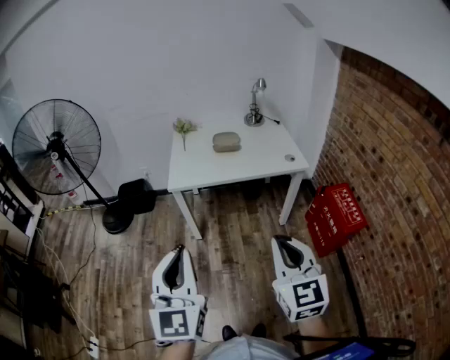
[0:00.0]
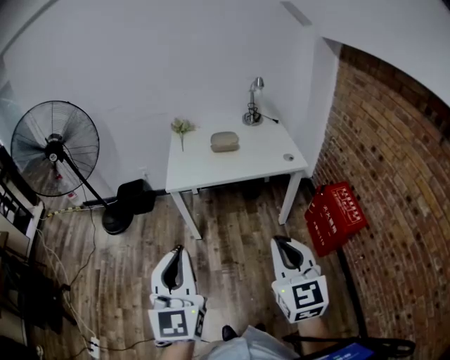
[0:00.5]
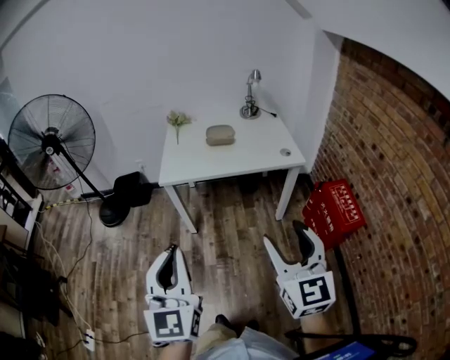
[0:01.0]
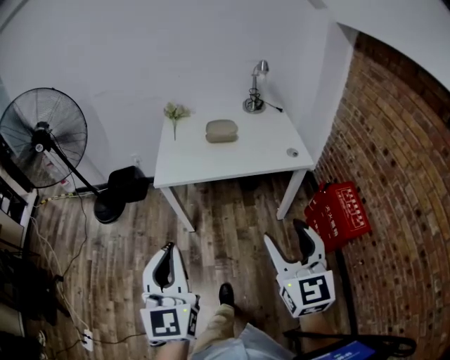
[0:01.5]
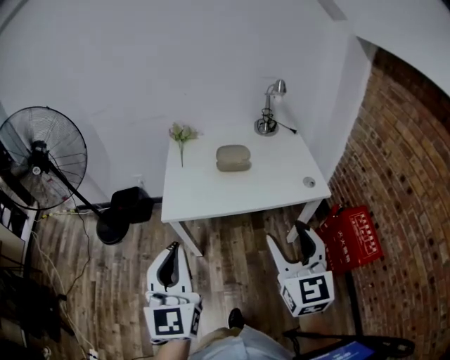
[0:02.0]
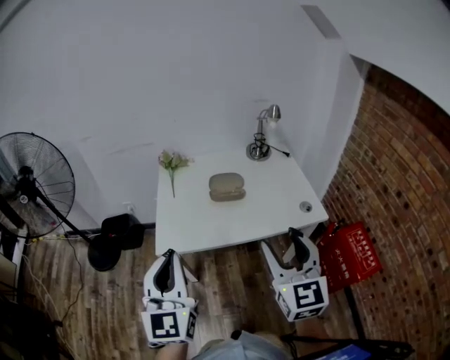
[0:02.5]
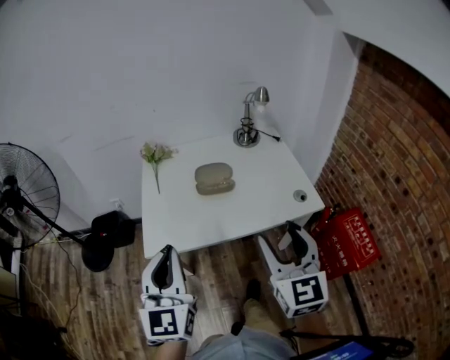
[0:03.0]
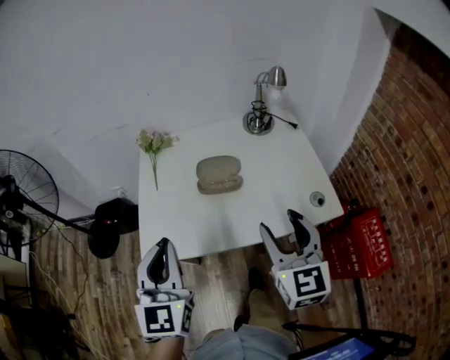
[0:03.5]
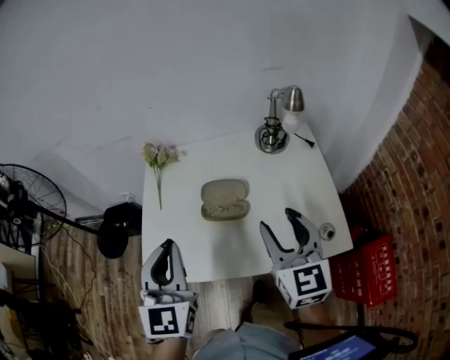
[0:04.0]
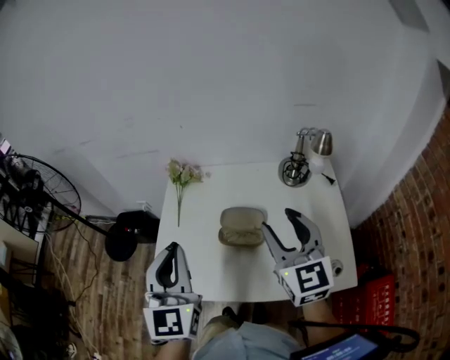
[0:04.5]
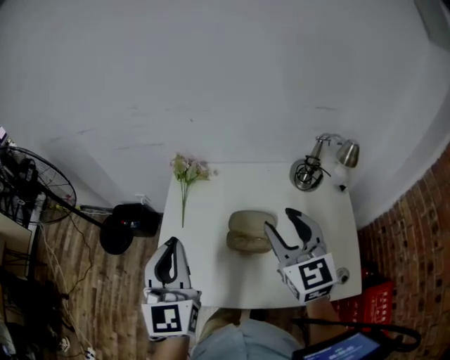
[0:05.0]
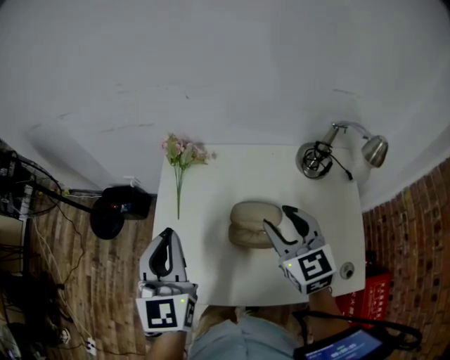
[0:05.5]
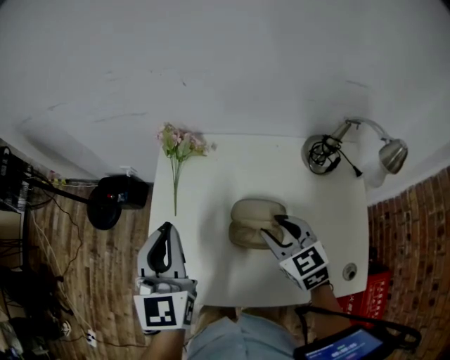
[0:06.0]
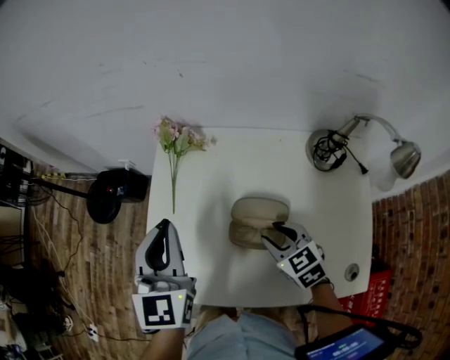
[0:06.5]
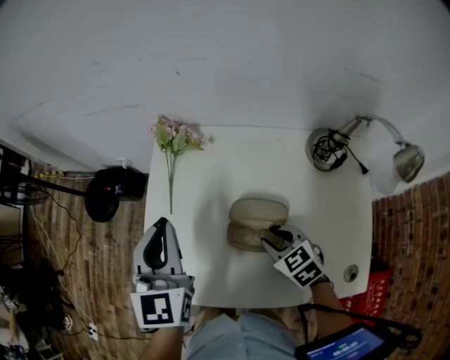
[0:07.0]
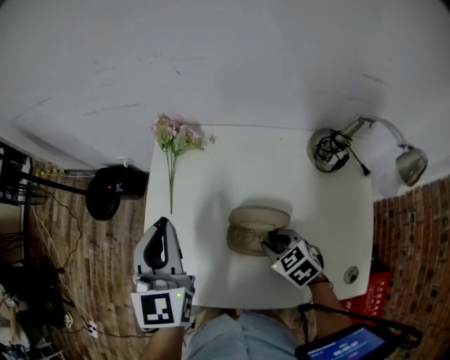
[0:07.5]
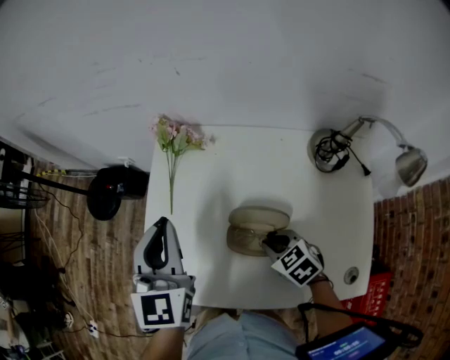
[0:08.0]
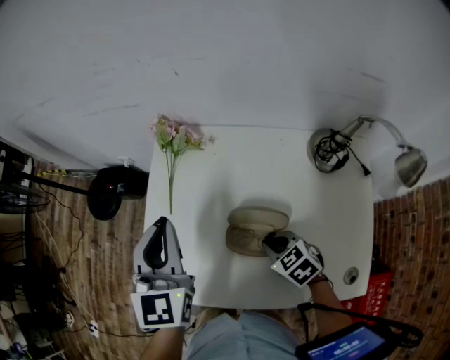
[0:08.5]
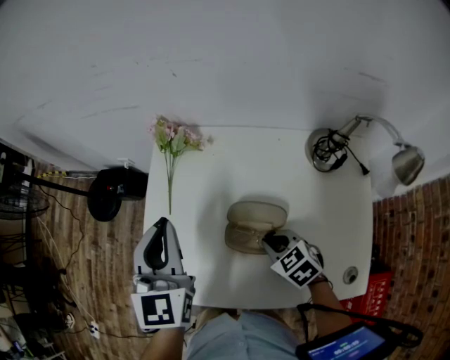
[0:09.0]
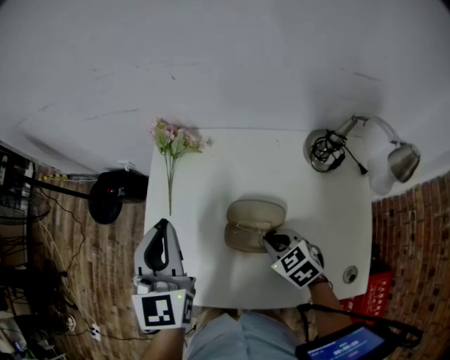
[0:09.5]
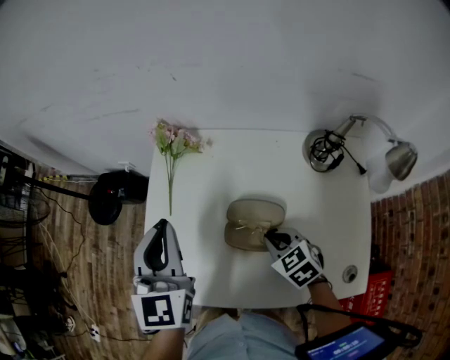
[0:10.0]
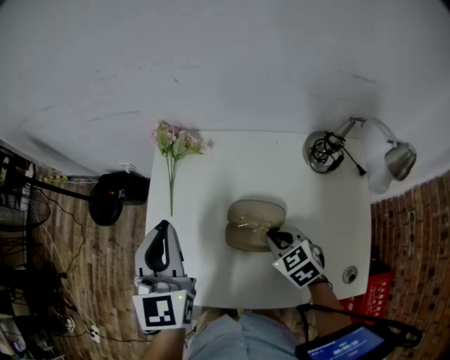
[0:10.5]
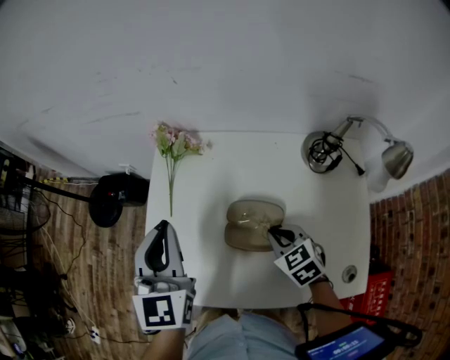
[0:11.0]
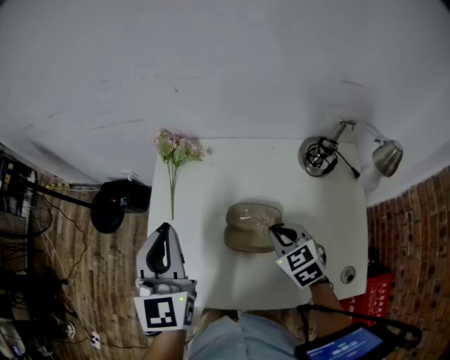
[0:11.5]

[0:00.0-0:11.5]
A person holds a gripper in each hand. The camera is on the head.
0:00.0 to 0:02.0: The two grippers go some 25 cm forward. The right gripper opens.
0:02.0 to 0:04.0: Both grippers move forward, roughly 35 cm.
0:04.0 to 0:06.0: The right gripper heads forward, downward and to the left, covering roughly 25 cm, and swivels roughly 40 degrees. The left gripper moves forward and to the left, roughly 20 cm.
0:06.0 to 0:07.5: The right gripper is displaced downward by roughly 10 cm, and changes its angle by roughly 30 degrees.
0:07.5 to 0:09.5: The grippers move only a little.
0:09.5 to 0:11.5: The right gripper moves about 5 cm.

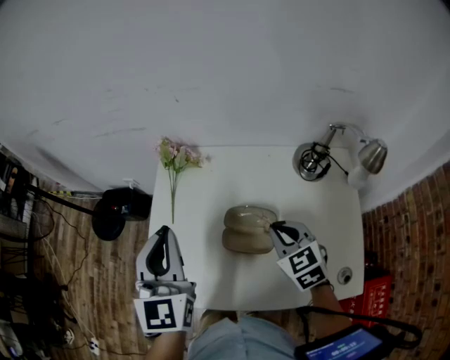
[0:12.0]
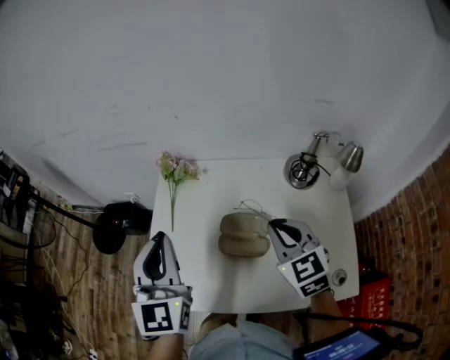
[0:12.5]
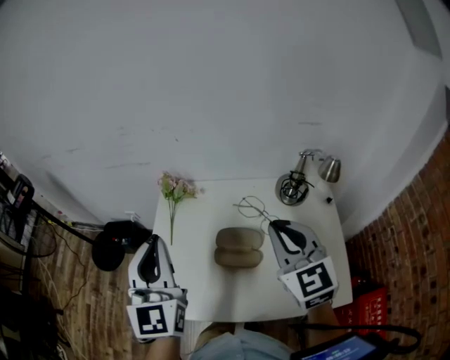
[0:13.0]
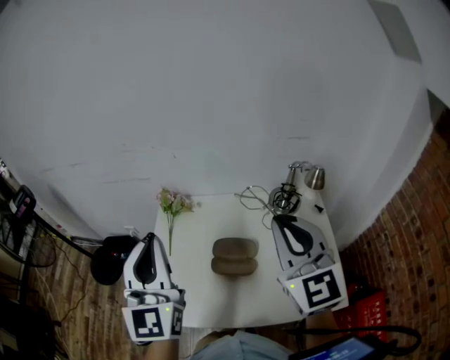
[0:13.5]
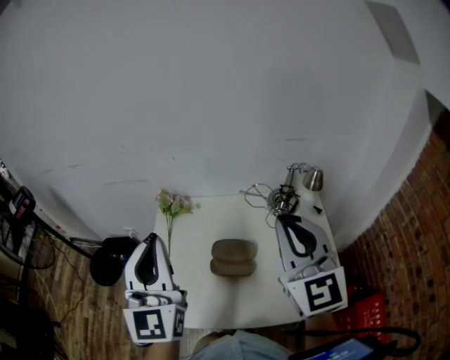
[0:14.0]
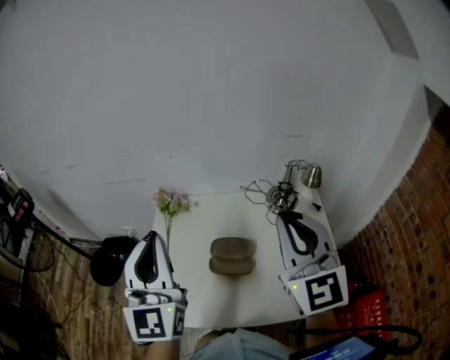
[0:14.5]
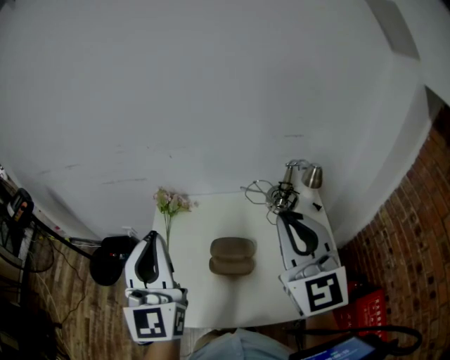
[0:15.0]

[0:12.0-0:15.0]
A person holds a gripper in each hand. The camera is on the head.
0:12.0 to 0:13.5: The right gripper heads upward, covering some 30 cm, and points its fingers about 40 degrees further upward, while the left gripper heads upward, covering about 15 cm.
0:13.5 to 0:15.0: The grippers stay close to where they were, moving slightly.

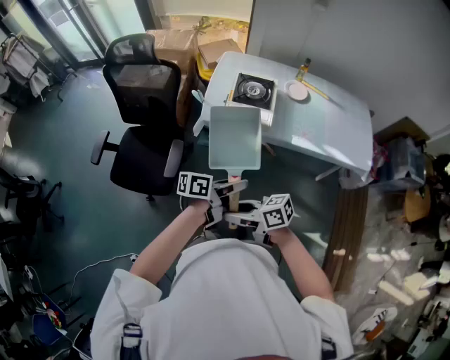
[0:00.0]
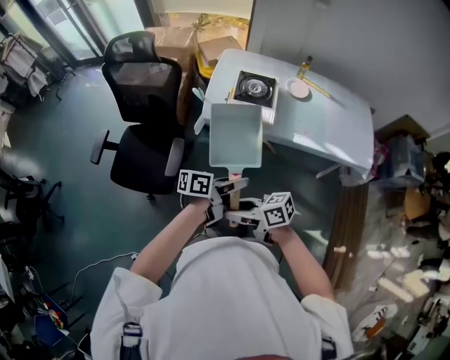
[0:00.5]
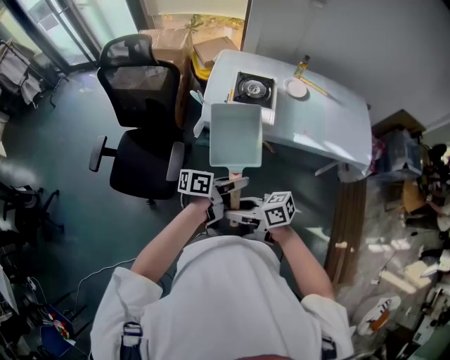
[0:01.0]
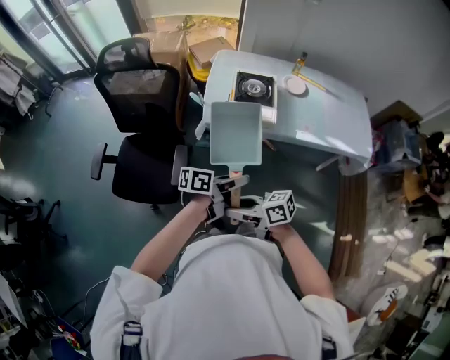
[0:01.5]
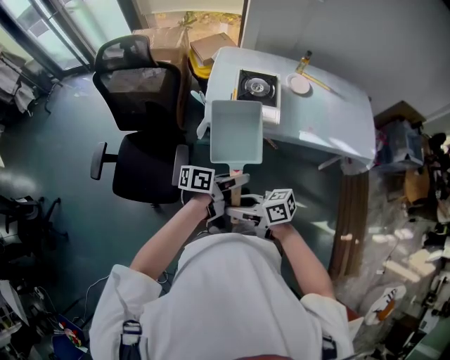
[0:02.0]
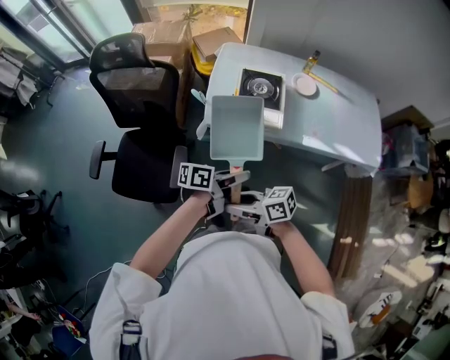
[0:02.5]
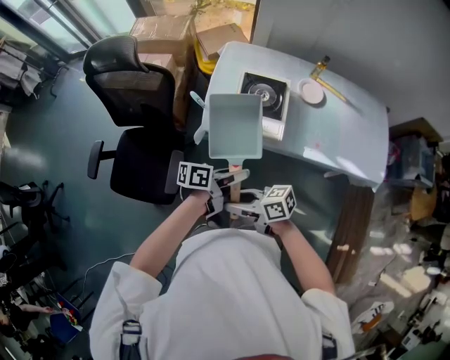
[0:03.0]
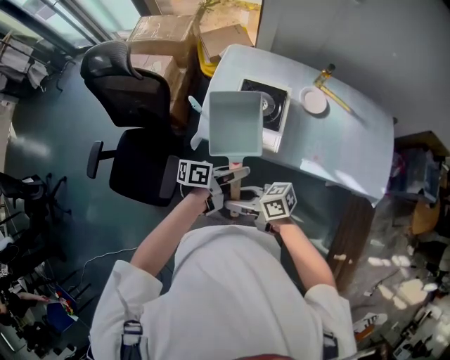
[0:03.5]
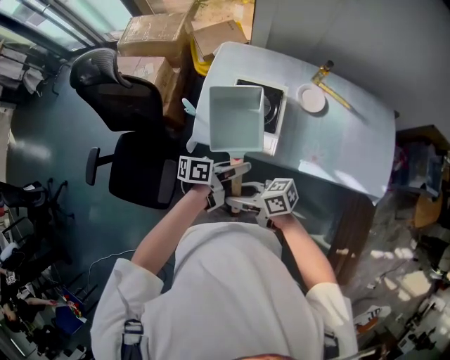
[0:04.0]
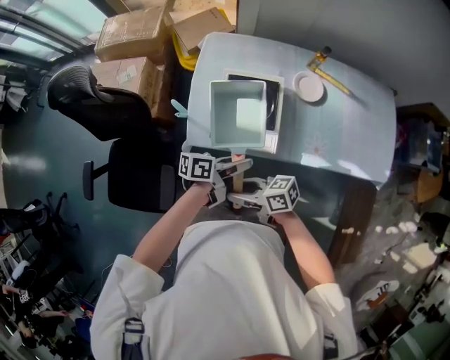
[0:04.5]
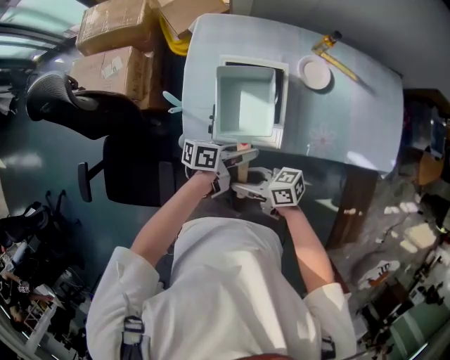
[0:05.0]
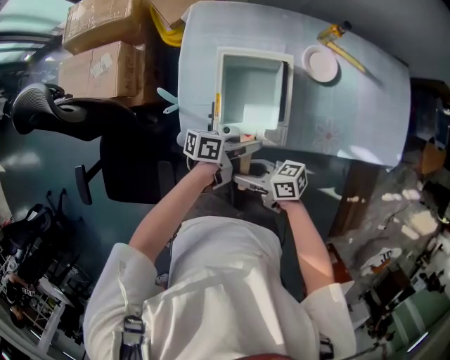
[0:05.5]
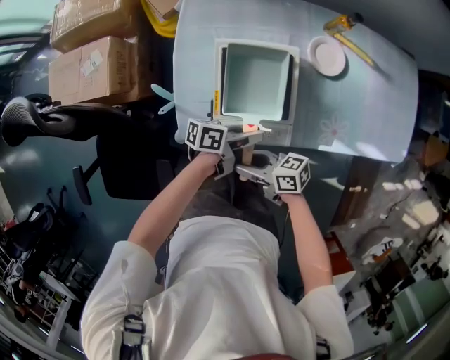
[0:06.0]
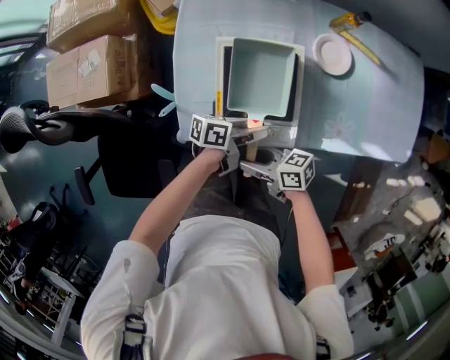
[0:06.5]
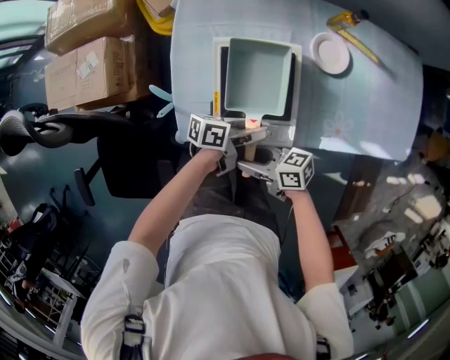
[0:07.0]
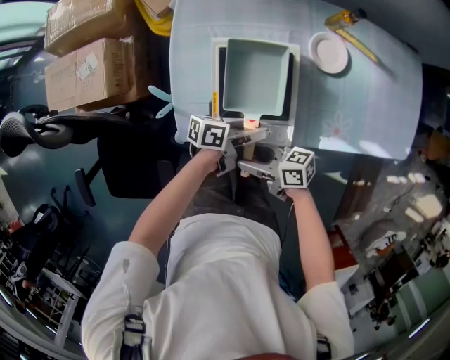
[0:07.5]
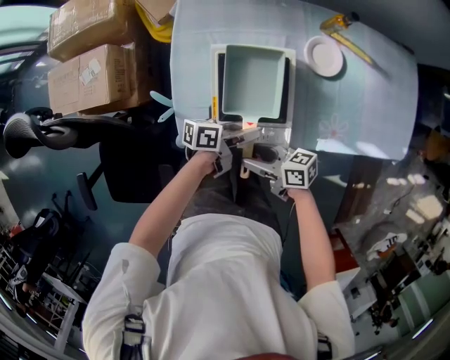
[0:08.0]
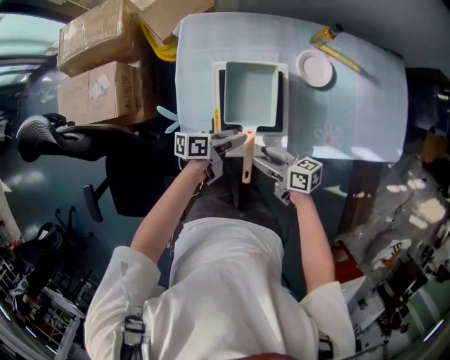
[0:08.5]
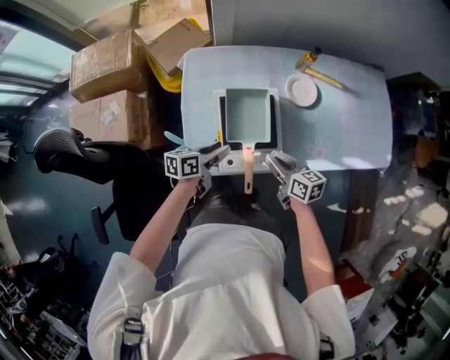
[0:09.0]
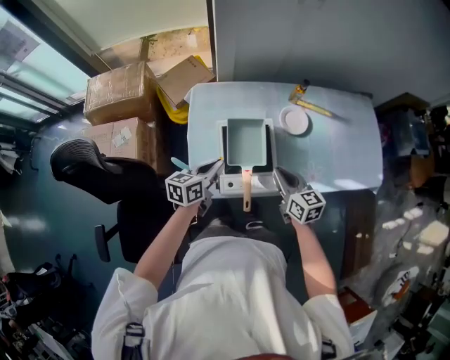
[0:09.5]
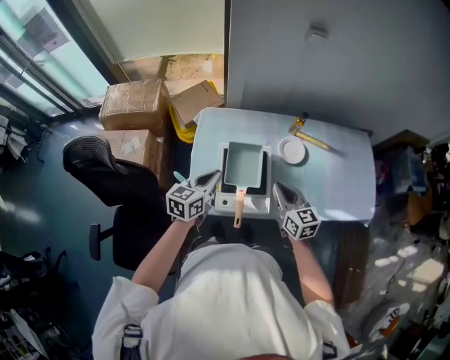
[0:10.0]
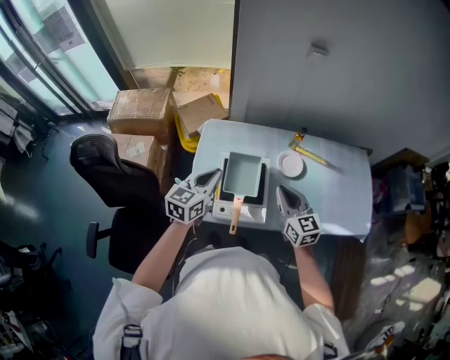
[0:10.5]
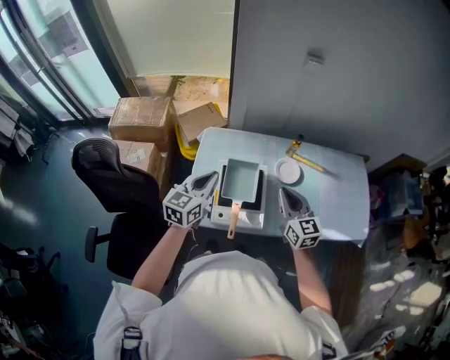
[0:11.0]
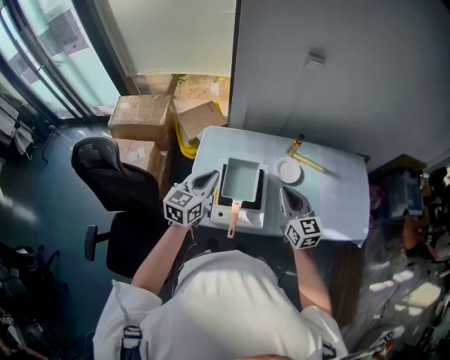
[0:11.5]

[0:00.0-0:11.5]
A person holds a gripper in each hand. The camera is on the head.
0:00.0 to 0:02.0: The right gripper moves roughly 10 cm. Meanwhile the left gripper changes place by some 10 cm.
0:02.0 to 0:04.0: The left gripper changes place by approximately 25 cm, while the right gripper shifts by approximately 25 cm.
0:04.0 to 0:06.0: Both grippers travel together downward, some 15 cm.
0:06.0 to 0:07.5: The grippers make only small movements.
0:07.5 to 0:09.5: The left gripper ends up some 20 cm from where it was, turns by some 40 degrees, and closes. The right gripper changes place by about 20 cm, turns by roughly 50 degrees, and closes up.
0:09.5 to 0:11.5: The grippers both shift upward by about 15 cm. The left gripper turns by roughly 30 degrees, while the right gripper rotates about 20 degrees.

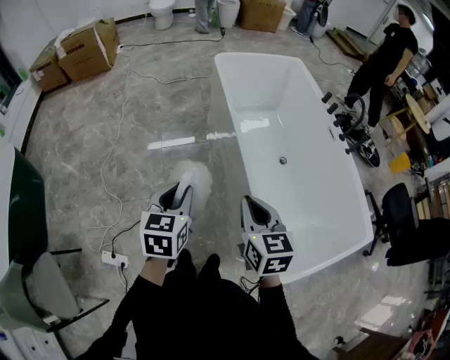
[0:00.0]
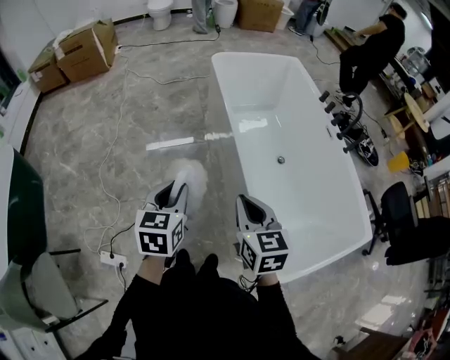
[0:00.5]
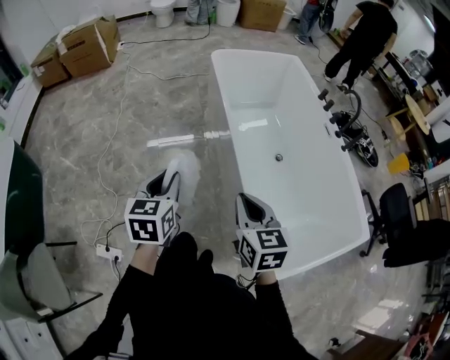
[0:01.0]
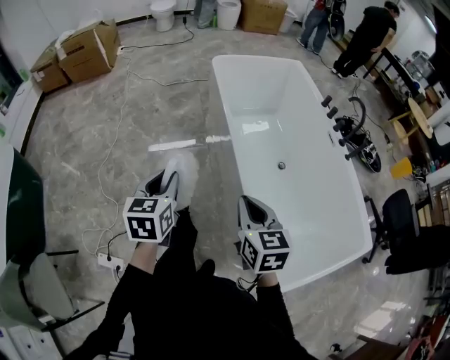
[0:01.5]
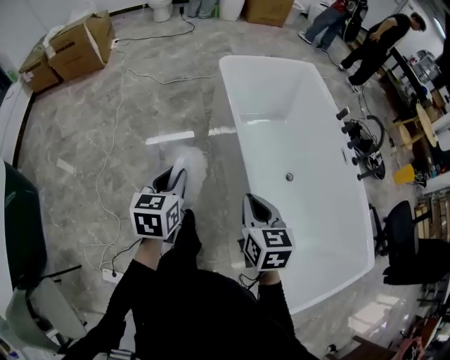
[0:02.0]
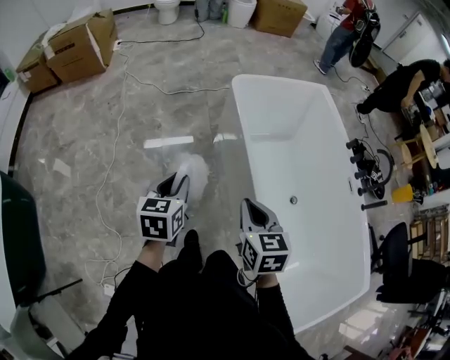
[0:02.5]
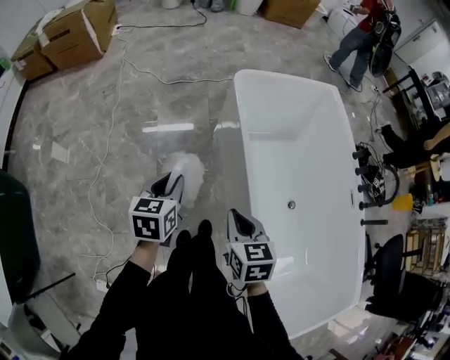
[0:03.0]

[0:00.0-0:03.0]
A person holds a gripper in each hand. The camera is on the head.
0:00.0 to 0:01.5: The left gripper shifts about 5 cm forward.
0:01.5 to 0:03.0: The grippers both shift forward by approximately 35 cm.
